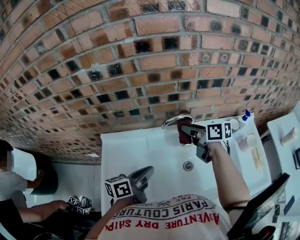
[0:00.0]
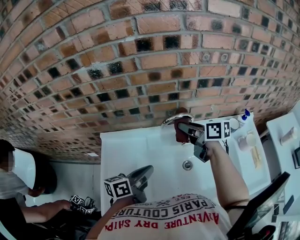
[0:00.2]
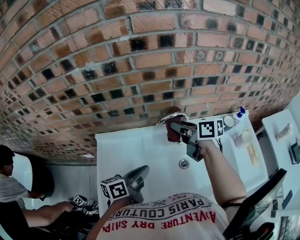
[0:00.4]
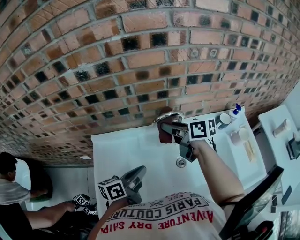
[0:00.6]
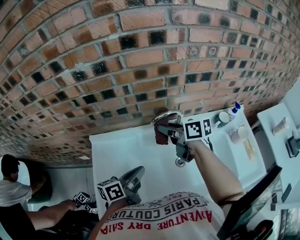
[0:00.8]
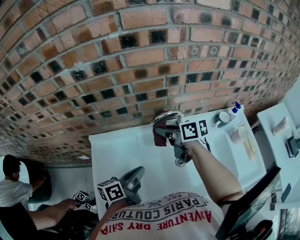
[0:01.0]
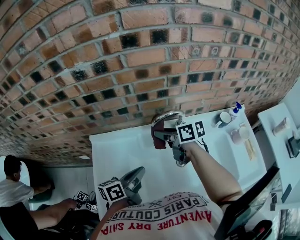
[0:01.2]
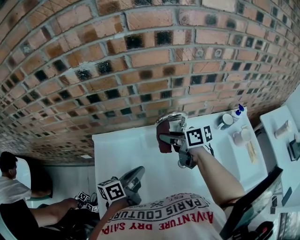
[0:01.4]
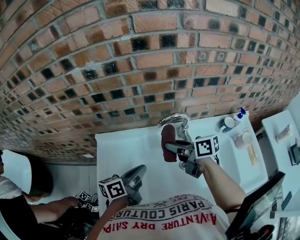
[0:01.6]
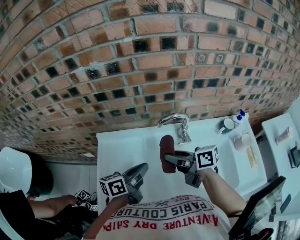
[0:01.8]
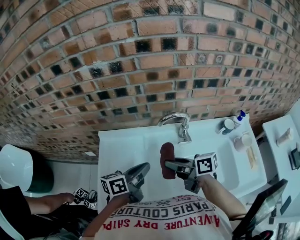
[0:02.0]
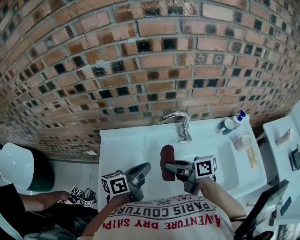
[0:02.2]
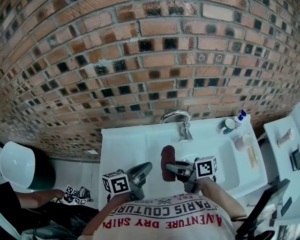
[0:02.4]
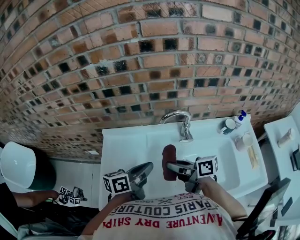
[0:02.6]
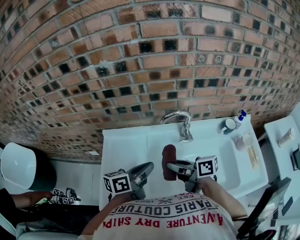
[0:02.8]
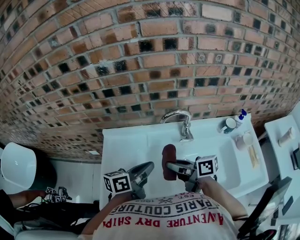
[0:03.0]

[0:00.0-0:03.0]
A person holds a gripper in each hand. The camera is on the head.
0:00.0 to 0:01.6: The right gripper moves to the left and backward, some 10 cm.
0:01.6 to 0:03.0: The right gripper goes roughly 10 cm backward. The left gripper moves some 5 cm.

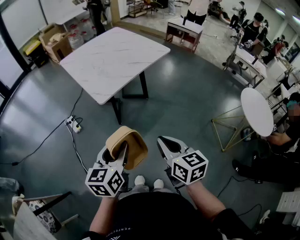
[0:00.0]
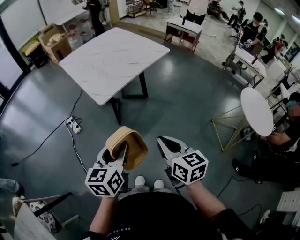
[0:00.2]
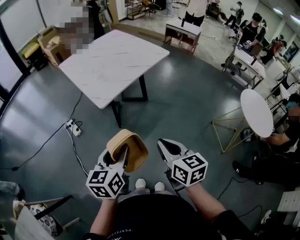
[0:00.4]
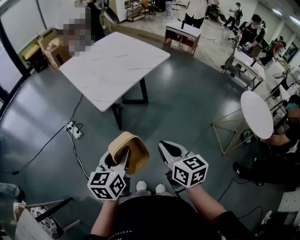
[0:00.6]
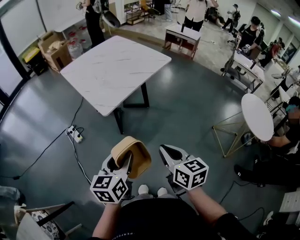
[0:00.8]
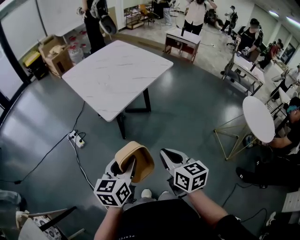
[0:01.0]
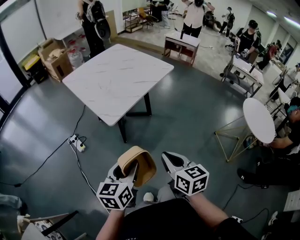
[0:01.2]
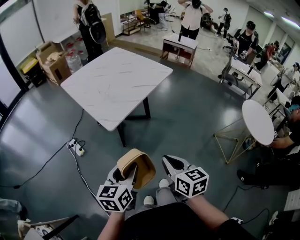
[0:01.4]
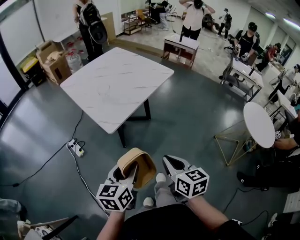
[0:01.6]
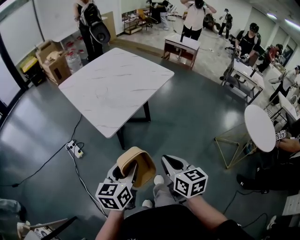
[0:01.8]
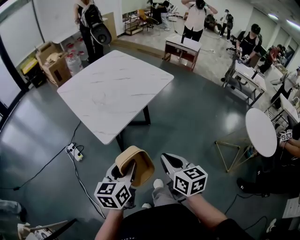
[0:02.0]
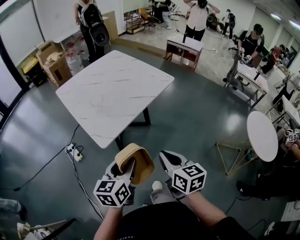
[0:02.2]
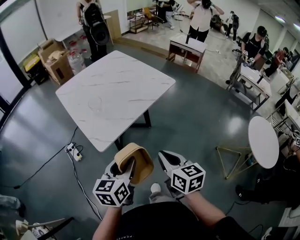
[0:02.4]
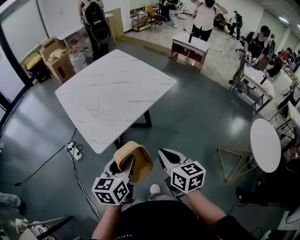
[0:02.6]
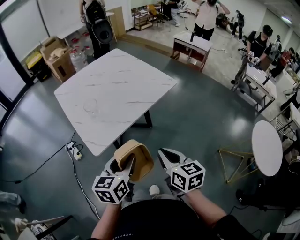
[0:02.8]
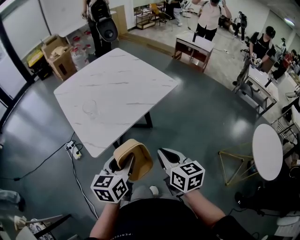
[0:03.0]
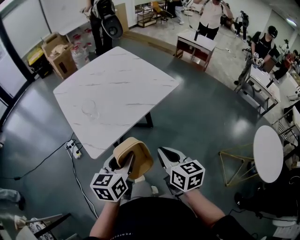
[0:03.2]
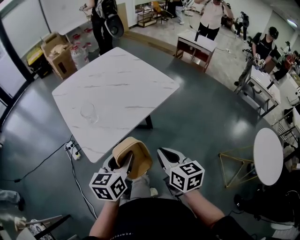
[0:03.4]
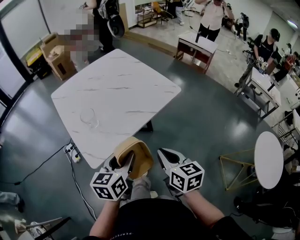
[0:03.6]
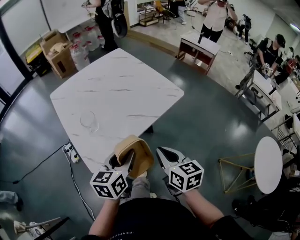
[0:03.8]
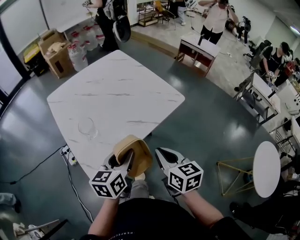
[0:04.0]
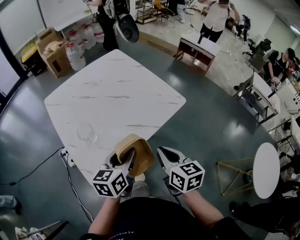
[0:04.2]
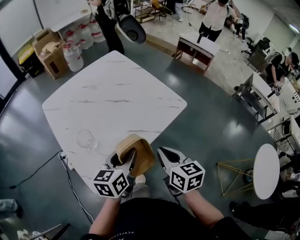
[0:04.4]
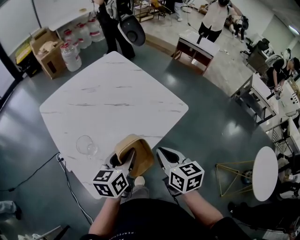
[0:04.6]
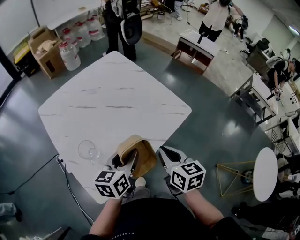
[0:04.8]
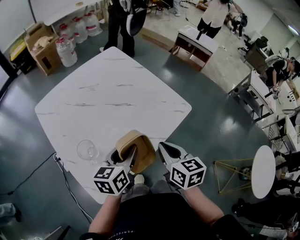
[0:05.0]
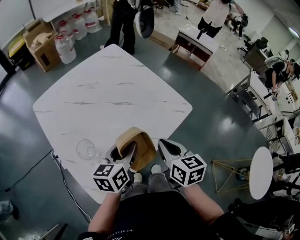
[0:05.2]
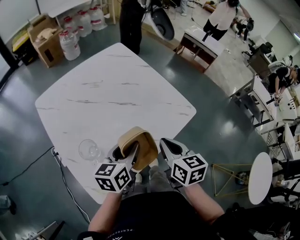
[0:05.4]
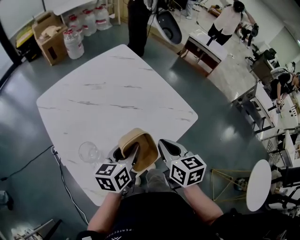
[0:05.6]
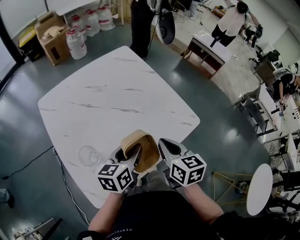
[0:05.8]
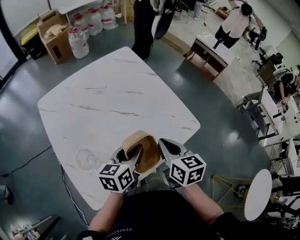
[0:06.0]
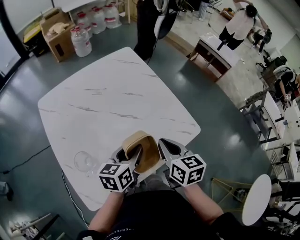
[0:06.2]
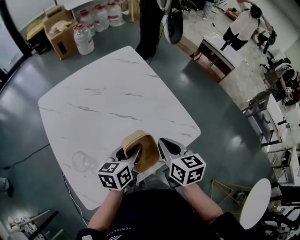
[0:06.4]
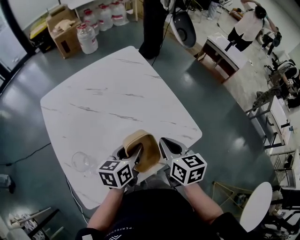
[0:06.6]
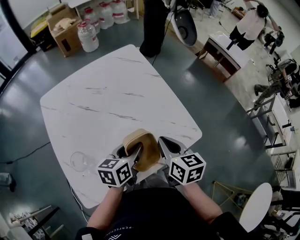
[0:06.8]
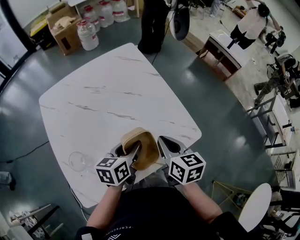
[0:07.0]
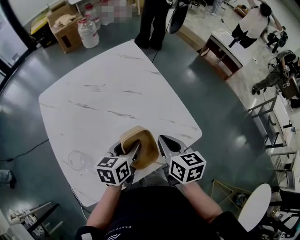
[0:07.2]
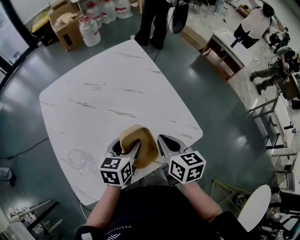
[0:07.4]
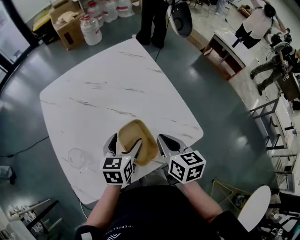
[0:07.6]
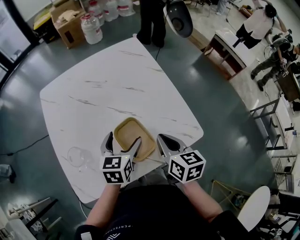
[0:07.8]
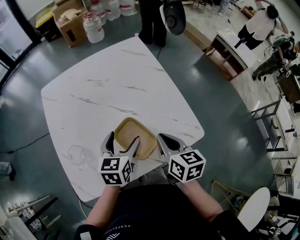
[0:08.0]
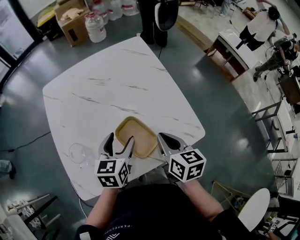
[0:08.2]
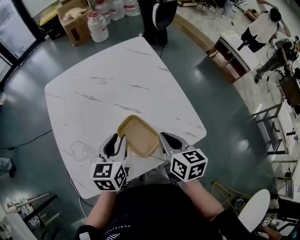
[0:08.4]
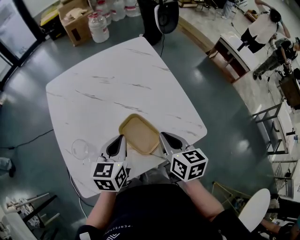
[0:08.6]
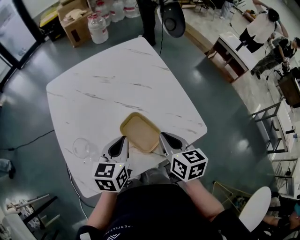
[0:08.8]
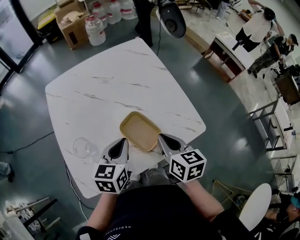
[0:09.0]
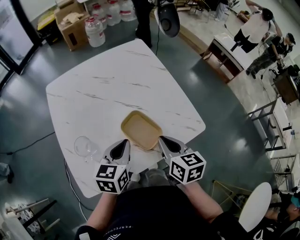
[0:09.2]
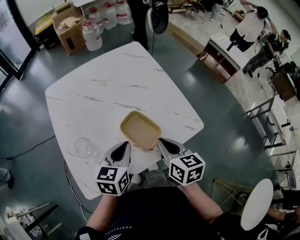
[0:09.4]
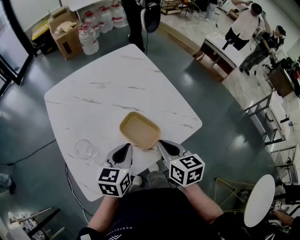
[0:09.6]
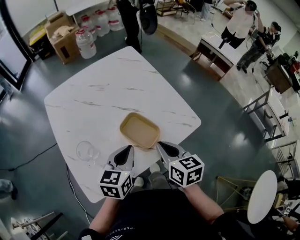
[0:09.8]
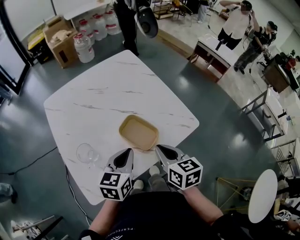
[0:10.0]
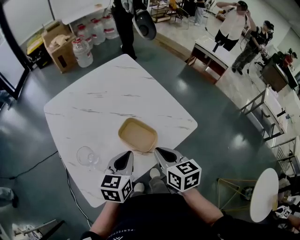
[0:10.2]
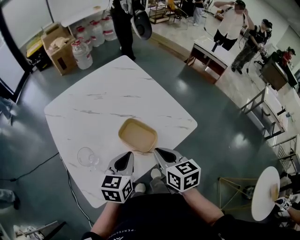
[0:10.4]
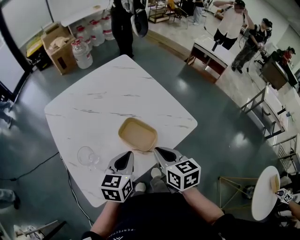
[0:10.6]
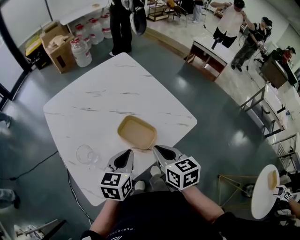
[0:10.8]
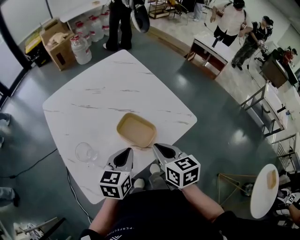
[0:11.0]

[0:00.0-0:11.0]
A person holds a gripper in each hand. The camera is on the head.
0:00.0 to 0:01.6: The grippers both shift forward by approximately 5 cm.
0:01.6 to 0:03.2: Both grippers travel together forward and to the right, some 25 cm.
0:03.2 to 0:04.8: The two grippers go approximately 25 cm forward.
0:04.8 to 0:06.2: The two grippers go some 10 cm forward.
0:06.2 to 0:07.8: The left gripper moves roughly 5 cm, swivels approximately 20 degrees, and opens its fingers.
0:07.8 to 0:09.4: The grippers both shift backward by roughly 5 cm. The left gripper closes.
0:09.4 to 0:11.0: The grippers move only a little.

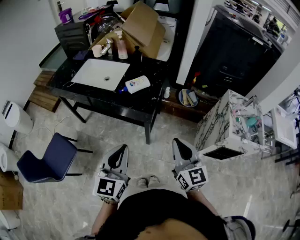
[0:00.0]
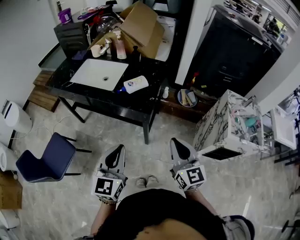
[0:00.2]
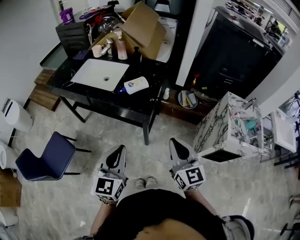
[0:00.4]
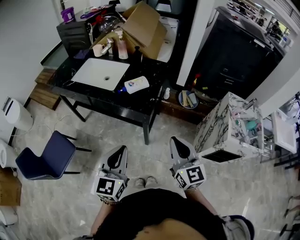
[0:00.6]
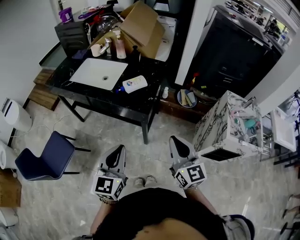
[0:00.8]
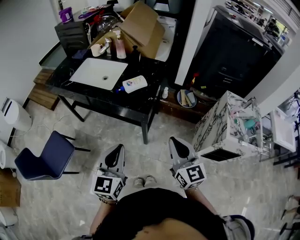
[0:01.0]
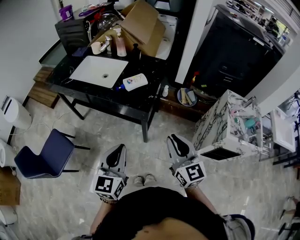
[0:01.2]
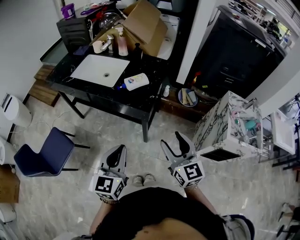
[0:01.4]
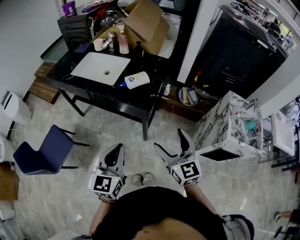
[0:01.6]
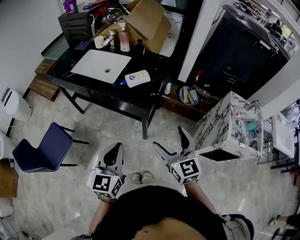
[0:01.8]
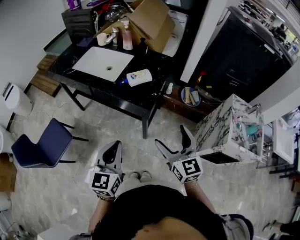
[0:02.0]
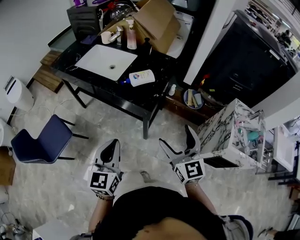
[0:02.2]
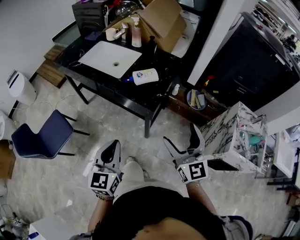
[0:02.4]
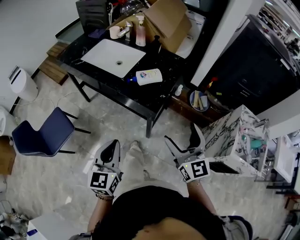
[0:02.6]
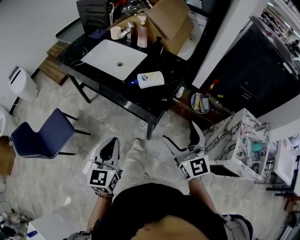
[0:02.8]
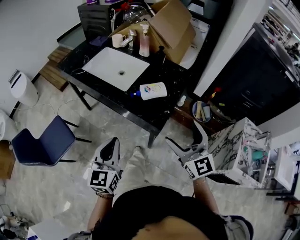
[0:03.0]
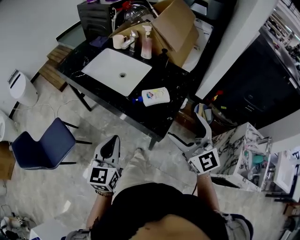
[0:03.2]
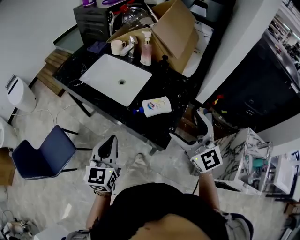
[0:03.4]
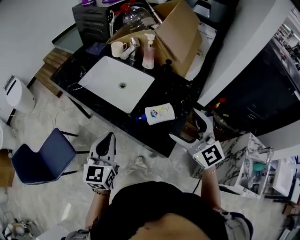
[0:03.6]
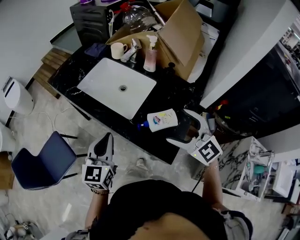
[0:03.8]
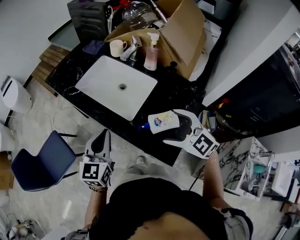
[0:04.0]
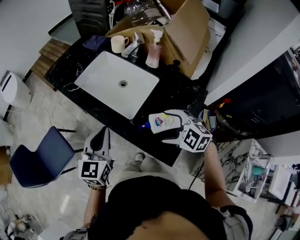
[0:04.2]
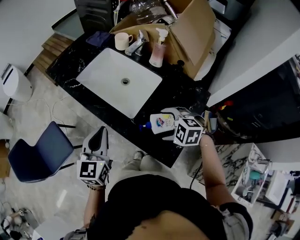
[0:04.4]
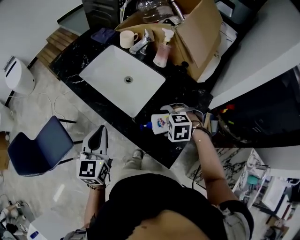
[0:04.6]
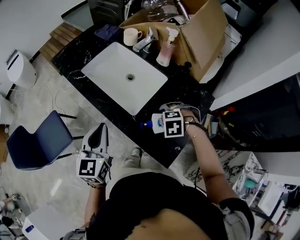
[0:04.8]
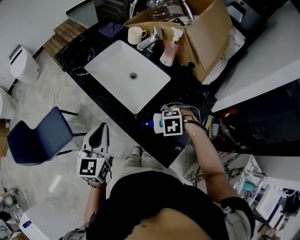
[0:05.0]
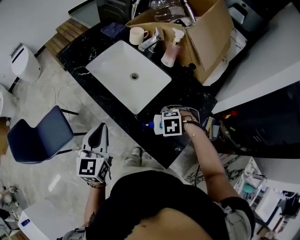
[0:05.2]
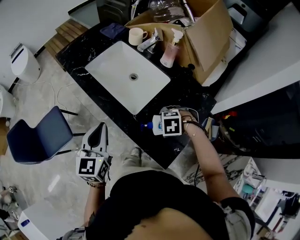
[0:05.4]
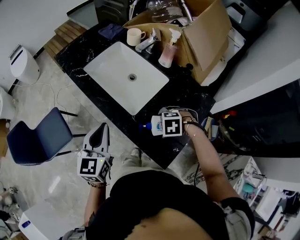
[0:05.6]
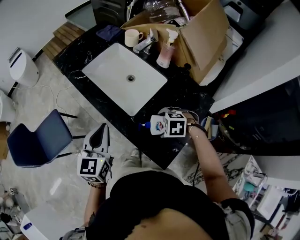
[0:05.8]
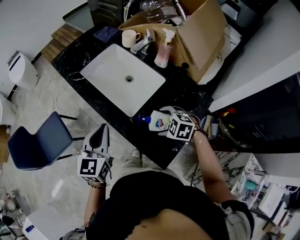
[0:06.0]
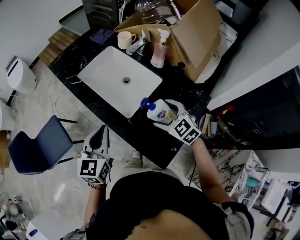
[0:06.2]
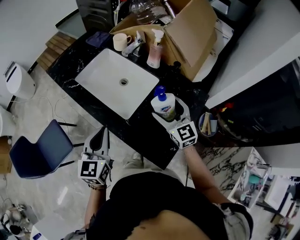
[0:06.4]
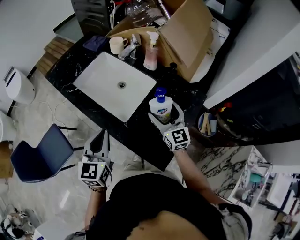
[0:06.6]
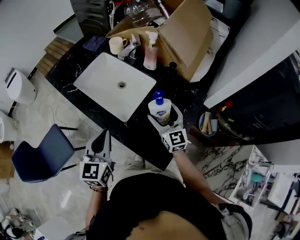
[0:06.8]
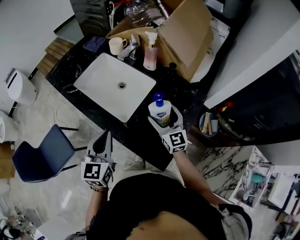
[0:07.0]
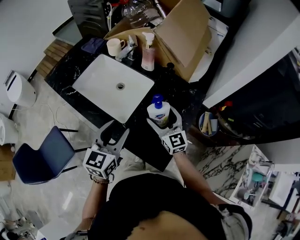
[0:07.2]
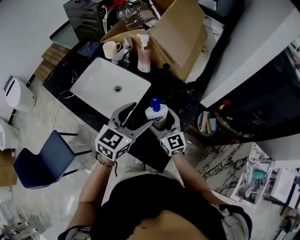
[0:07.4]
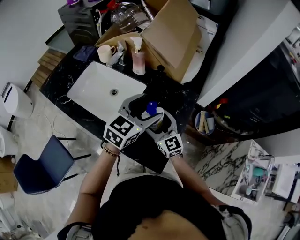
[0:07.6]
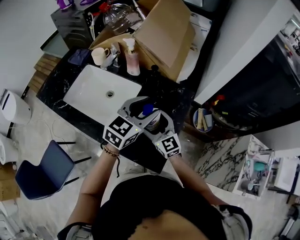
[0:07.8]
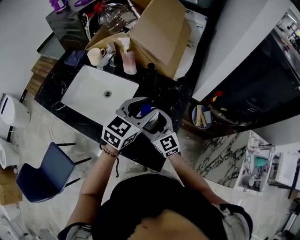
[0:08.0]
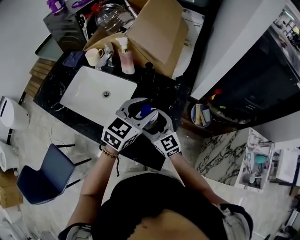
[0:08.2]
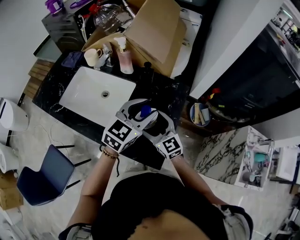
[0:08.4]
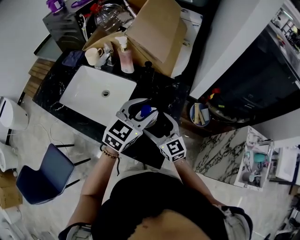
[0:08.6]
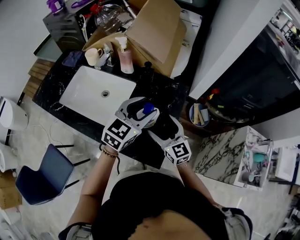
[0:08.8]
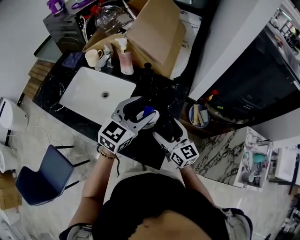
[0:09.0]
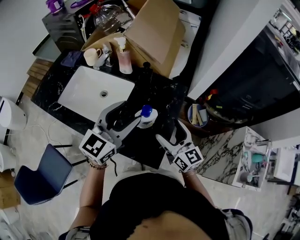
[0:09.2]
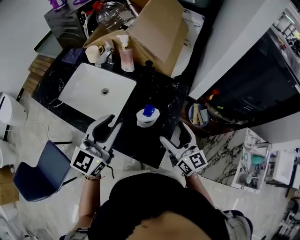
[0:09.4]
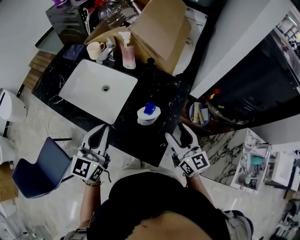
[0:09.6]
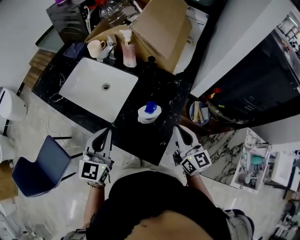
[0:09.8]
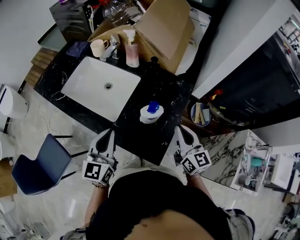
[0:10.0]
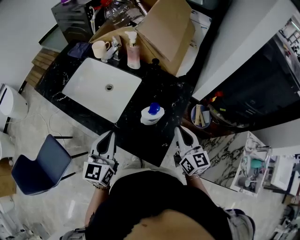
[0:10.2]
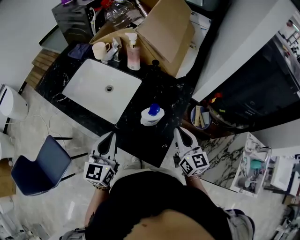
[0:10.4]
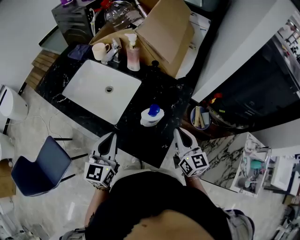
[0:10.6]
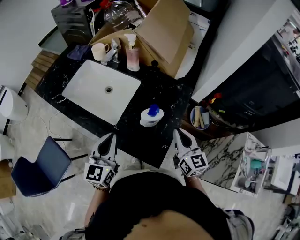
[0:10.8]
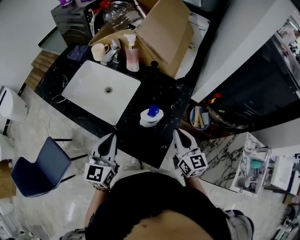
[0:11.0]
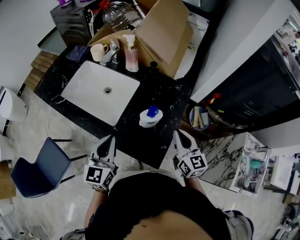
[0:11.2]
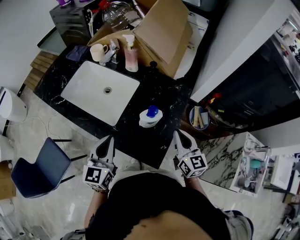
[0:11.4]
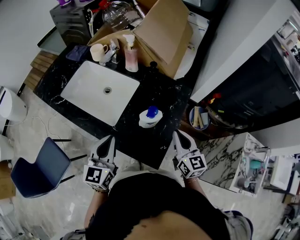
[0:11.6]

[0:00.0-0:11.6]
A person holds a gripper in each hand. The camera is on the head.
0:00.0 to 0:01.4: The right gripper opens.
0:01.4 to 0:02.8: The left gripper moves forward, roughly 5 cm; the right gripper is displaced forward by roughly 10 cm, and opens its fingers.
0:02.8 to 0:04.4: The left gripper changes place by some 30 cm. The right gripper moves about 35 cm, and points its fingers about 60 degrees further downward.
0:04.4 to 0:05.8: The right gripper heads downward, covering some 5 cm.
0:05.8 to 0:07.2: The left gripper ends up roughly 10 cm from where it was, rotates about 20 degrees, and opens its fingers; the right gripper heads upward, covering some 10 cm, and points its fingers about 70 degrees further upward.
0:07.2 to 0:08.8: The right gripper goes about 10 cm to the right and backward; the left gripper goes about 20 cm to the right and forward, swivels about 30 degrees, and opens, then closes again.
0:08.8 to 0:10.2: The right gripper goes roughly 5 cm to the right, and closes. Meanwhile the left gripper travels to the left and backward by roughly 20 cm, turns by some 40 degrees, and closes its fingers.
0:10.2 to 0:11.6: The grippers make only small movements.
